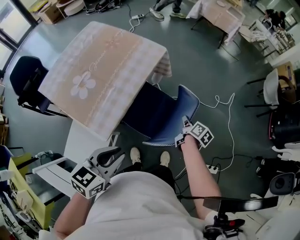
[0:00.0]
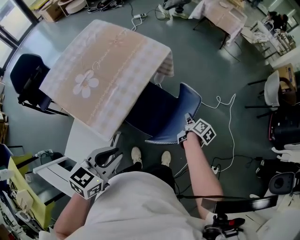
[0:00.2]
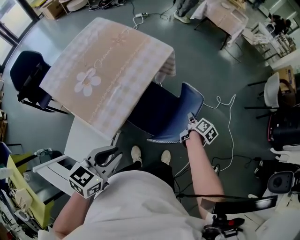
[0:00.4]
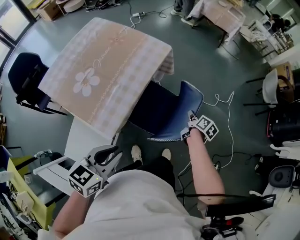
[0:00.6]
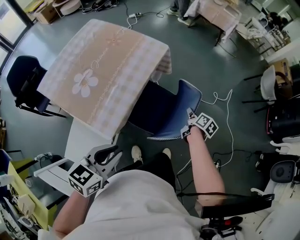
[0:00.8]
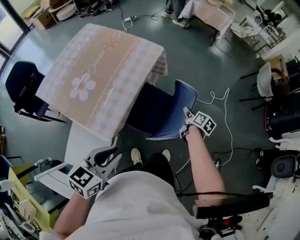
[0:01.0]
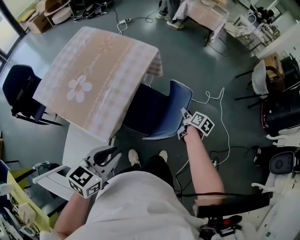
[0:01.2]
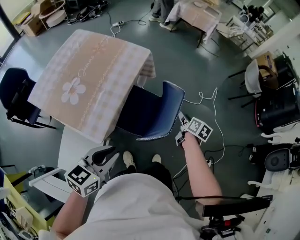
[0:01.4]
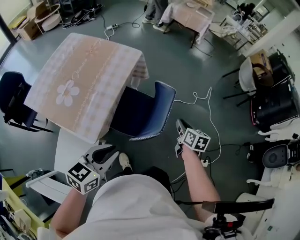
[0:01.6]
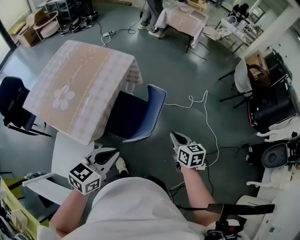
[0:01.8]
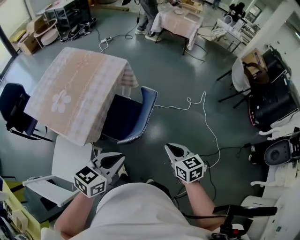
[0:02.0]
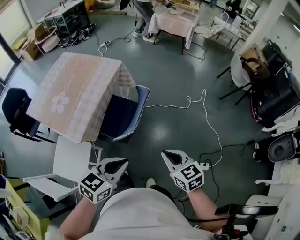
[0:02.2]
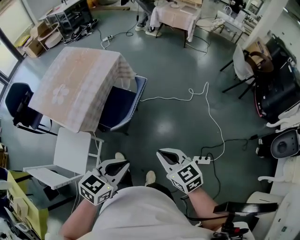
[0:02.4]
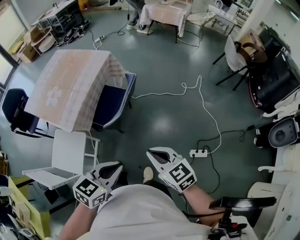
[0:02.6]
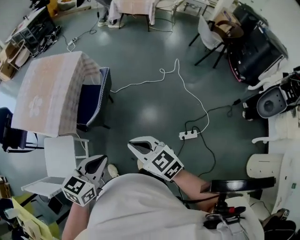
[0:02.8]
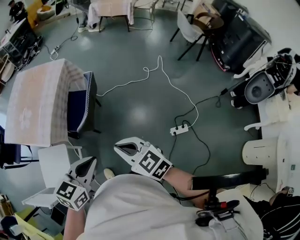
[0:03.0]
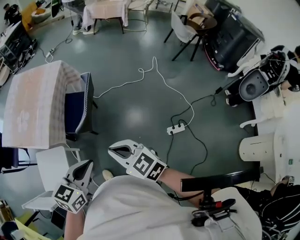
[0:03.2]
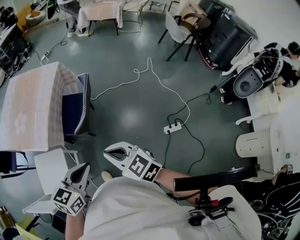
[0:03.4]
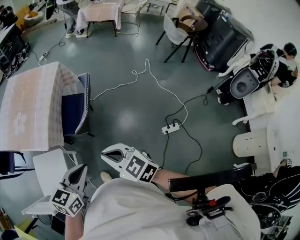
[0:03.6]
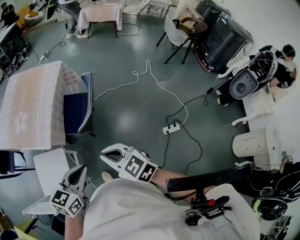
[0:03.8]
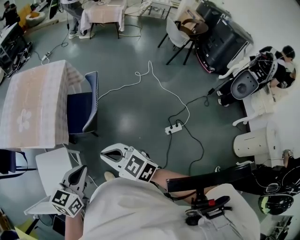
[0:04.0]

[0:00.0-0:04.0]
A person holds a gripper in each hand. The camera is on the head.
0:00.0 to 0:01.4: The right gripper travels upward by about 5 cm, and opens up.
0:01.4 to 0:02.6: The right gripper travels backward and upward by some 35 cm, rotates around the line of its fingers by about 50 degrees, counterclockwise from behind, and closes. The left gripper is displaced to the right and backward by approximately 30 cm.
0:02.6 to 0:04.0: Both grippers move to the left, approximately 15 cm.

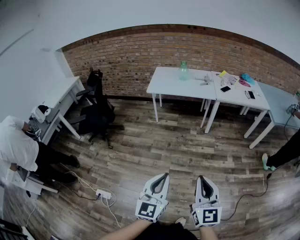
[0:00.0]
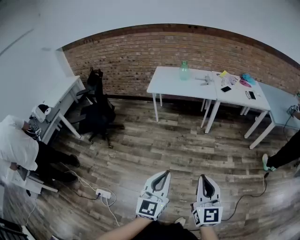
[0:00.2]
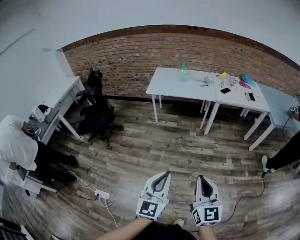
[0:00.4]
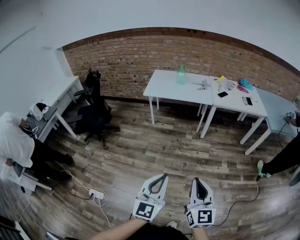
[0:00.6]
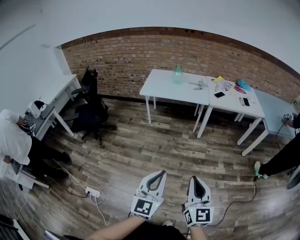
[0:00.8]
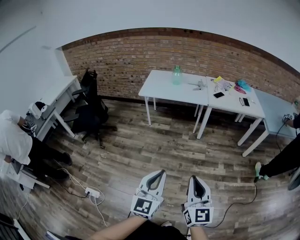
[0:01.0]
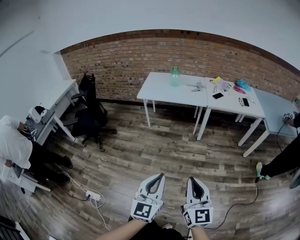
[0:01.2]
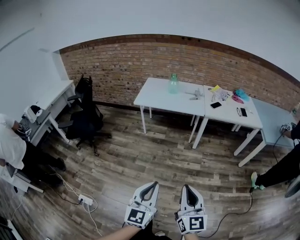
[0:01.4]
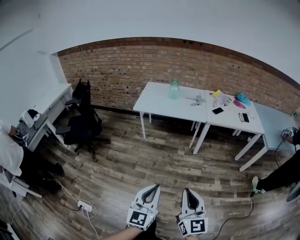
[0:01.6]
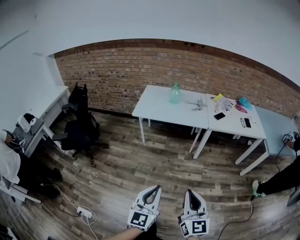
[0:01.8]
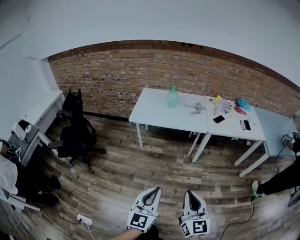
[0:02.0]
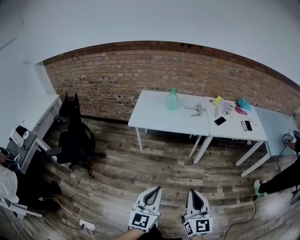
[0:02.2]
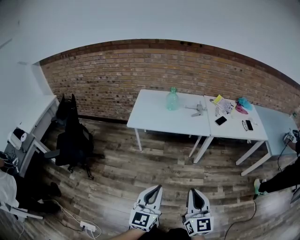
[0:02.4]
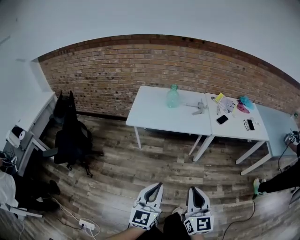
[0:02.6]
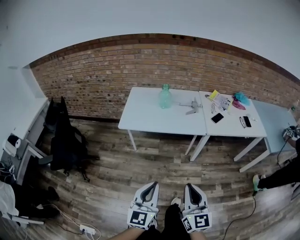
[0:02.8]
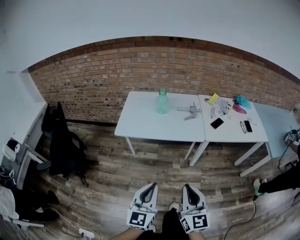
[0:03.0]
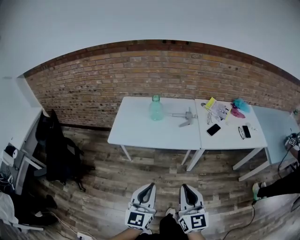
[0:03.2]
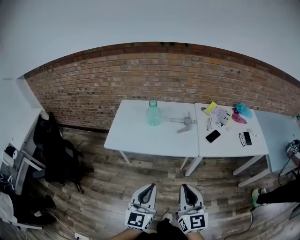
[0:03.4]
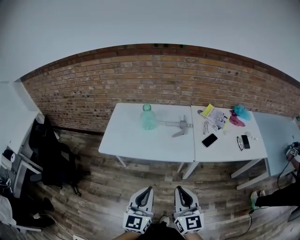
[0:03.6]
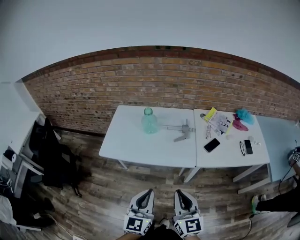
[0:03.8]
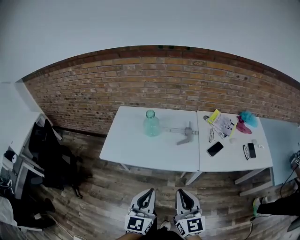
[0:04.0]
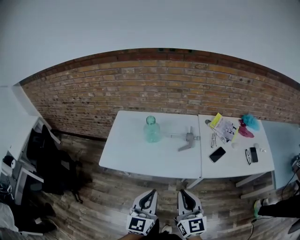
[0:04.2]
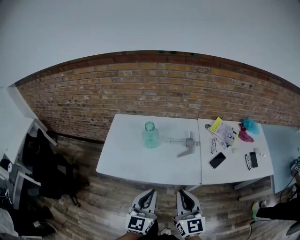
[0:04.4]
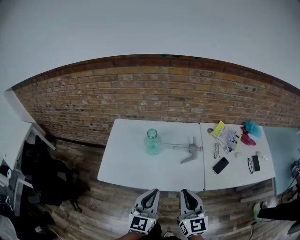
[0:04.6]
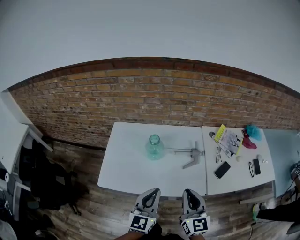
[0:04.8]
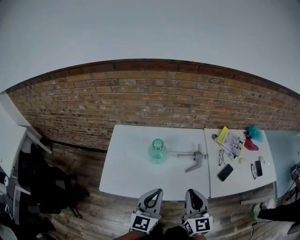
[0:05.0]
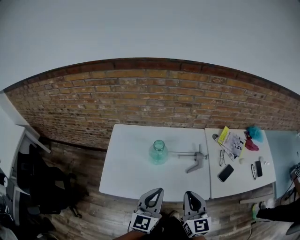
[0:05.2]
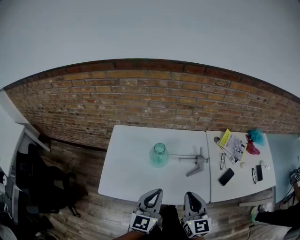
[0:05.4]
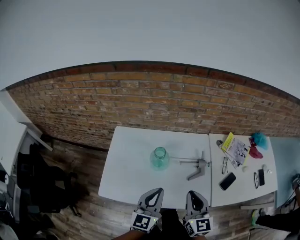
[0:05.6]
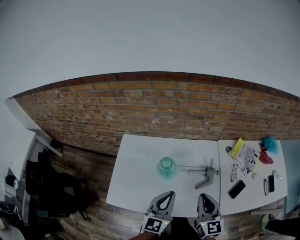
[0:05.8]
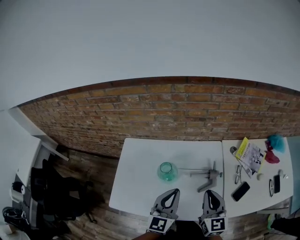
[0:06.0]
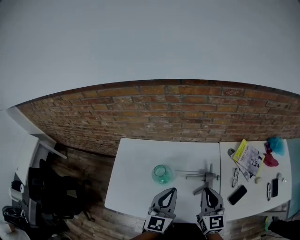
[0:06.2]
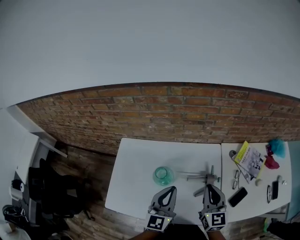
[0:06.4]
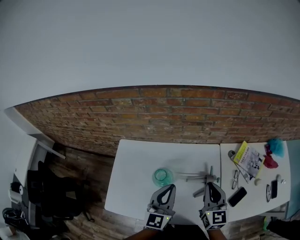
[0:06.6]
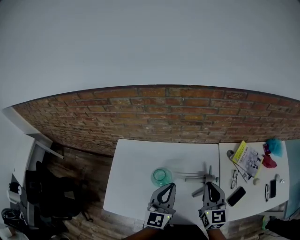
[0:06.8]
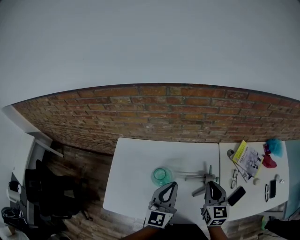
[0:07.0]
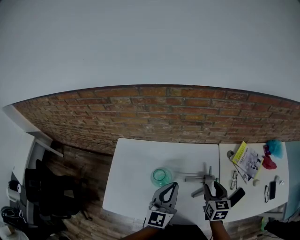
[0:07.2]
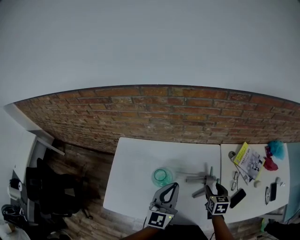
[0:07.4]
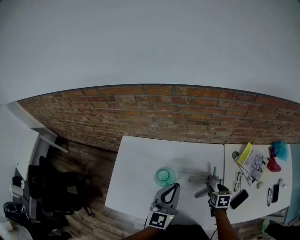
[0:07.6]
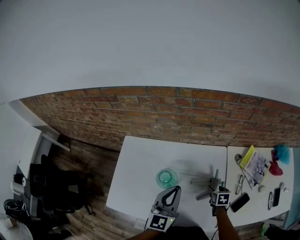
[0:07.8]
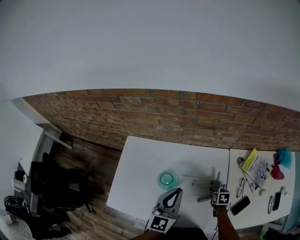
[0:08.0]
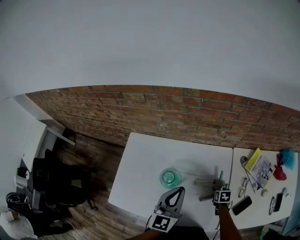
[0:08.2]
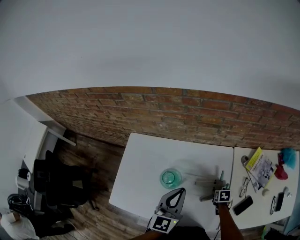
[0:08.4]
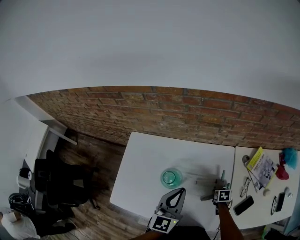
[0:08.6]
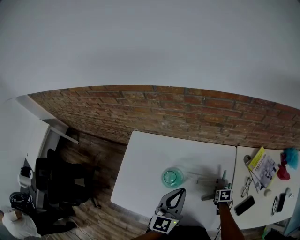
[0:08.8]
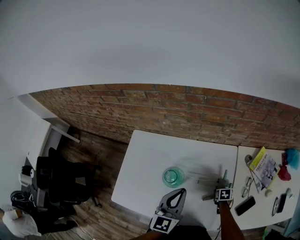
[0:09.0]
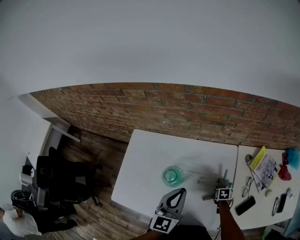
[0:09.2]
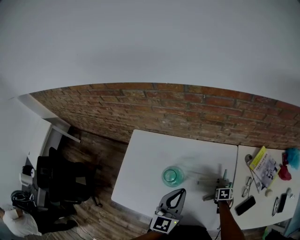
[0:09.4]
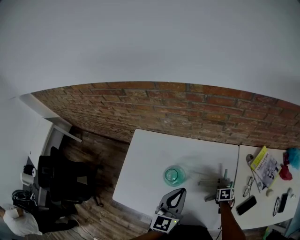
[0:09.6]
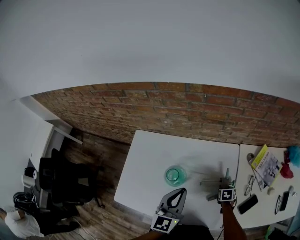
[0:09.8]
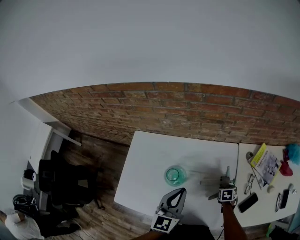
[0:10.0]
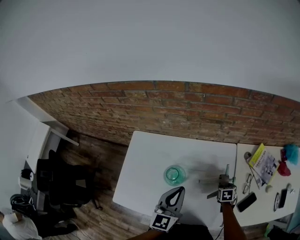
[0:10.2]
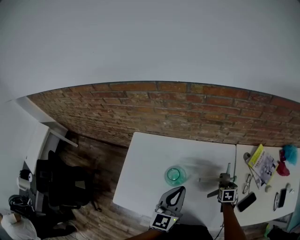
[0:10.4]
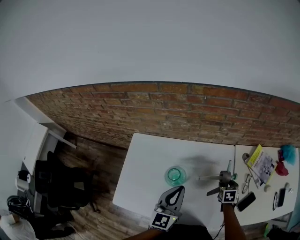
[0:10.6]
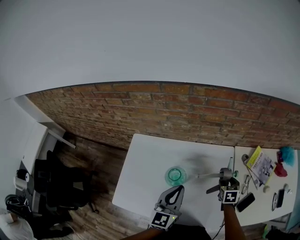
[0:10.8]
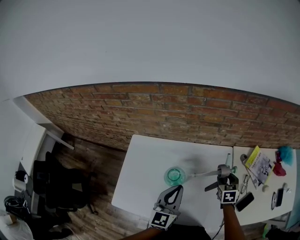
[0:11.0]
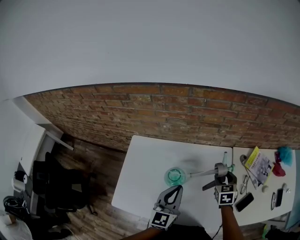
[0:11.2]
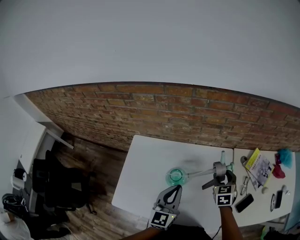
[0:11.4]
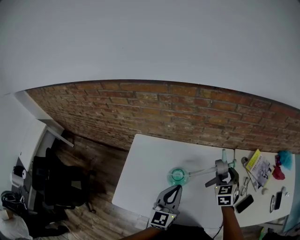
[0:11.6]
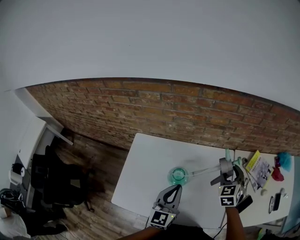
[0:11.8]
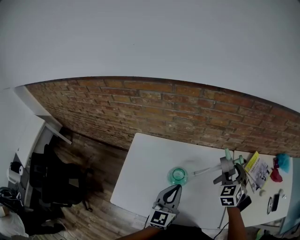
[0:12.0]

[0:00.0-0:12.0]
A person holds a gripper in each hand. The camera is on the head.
0:00.0 to 0:01.6: The two grippers go about 15 cm forward and to the right.
0:01.6 to 0:03.0: The two grippers go roughly 35 cm forward.
0:03.0 to 0:04.4: Both grippers travel together forward, approximately 35 cm.
0:04.4 to 0:06.0: The two grippers go roughly 30 cm forward.
0:06.0 to 0:07.6: The right gripper heads downward and forward, covering some 25 cm, tips its fingers downward by some 40 degrees, and opens its fingers. The left gripper is displaced forward by some 10 cm.
0:07.6 to 0:09.0: The right gripper travels downward by some 15 cm, and swivels roughly 20 degrees.
0:09.0 to 0:10.4: The right gripper goes approximately 10 cm upward.
0:10.4 to 0:12.0: The right gripper moves upward, approximately 25 cm, and points its fingers roughly 30 degrees further upward.

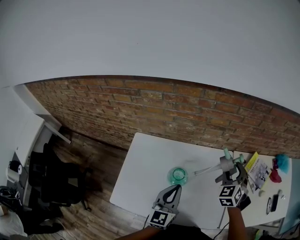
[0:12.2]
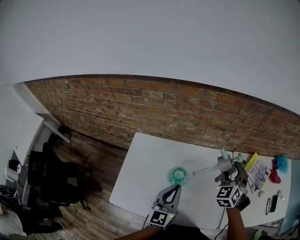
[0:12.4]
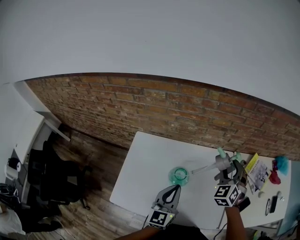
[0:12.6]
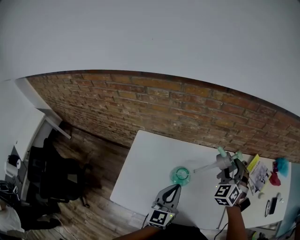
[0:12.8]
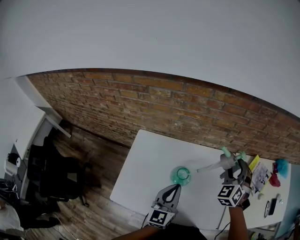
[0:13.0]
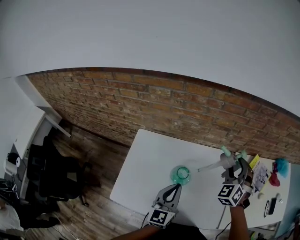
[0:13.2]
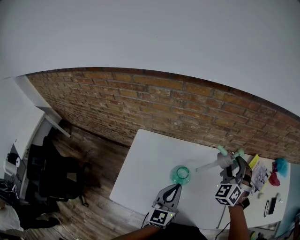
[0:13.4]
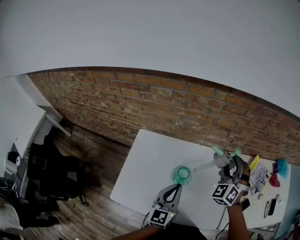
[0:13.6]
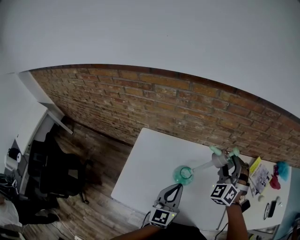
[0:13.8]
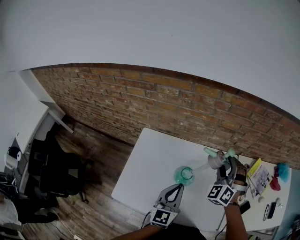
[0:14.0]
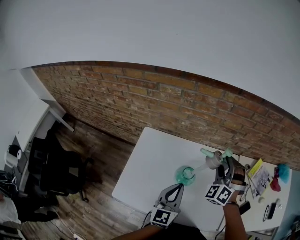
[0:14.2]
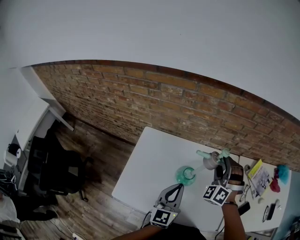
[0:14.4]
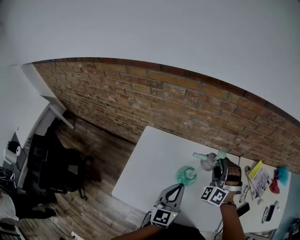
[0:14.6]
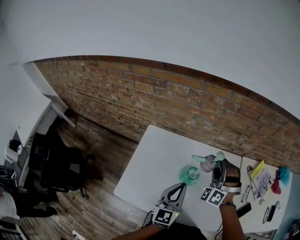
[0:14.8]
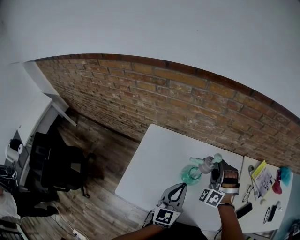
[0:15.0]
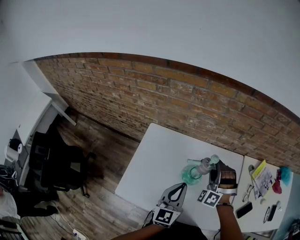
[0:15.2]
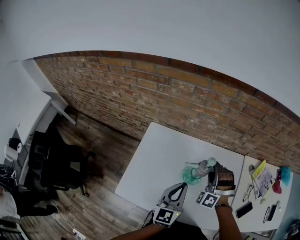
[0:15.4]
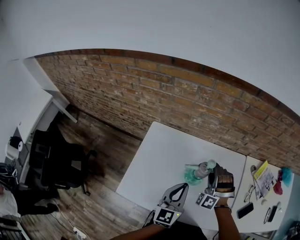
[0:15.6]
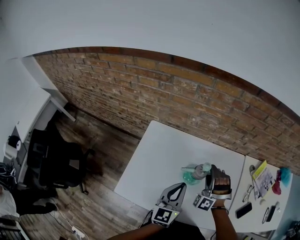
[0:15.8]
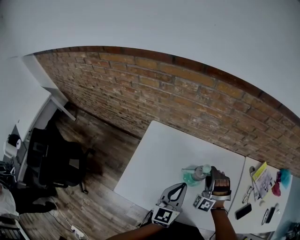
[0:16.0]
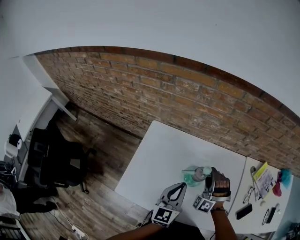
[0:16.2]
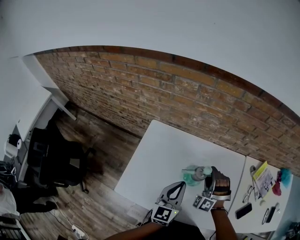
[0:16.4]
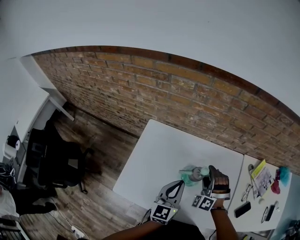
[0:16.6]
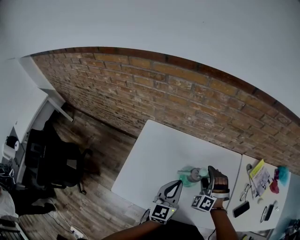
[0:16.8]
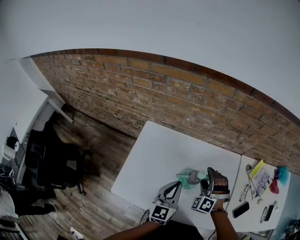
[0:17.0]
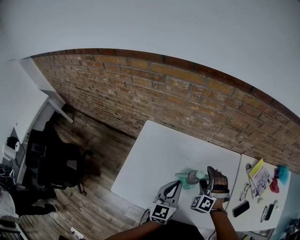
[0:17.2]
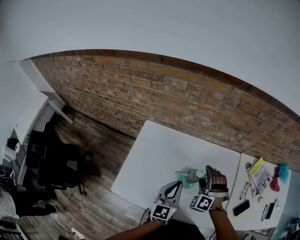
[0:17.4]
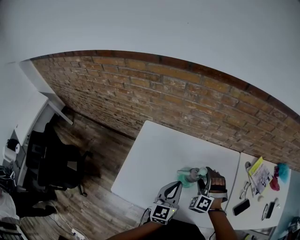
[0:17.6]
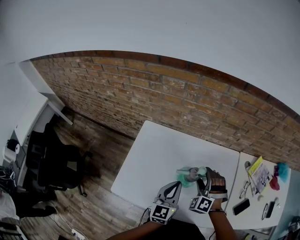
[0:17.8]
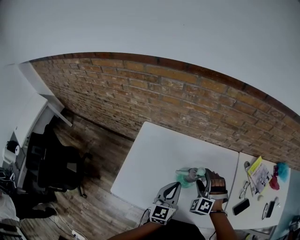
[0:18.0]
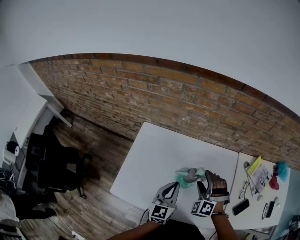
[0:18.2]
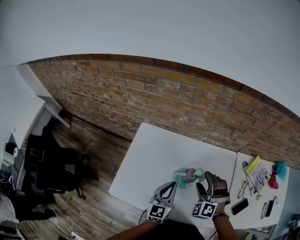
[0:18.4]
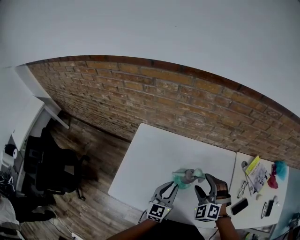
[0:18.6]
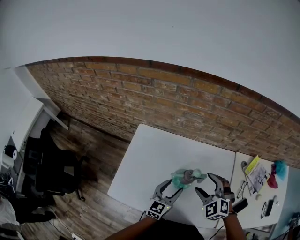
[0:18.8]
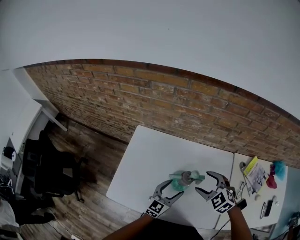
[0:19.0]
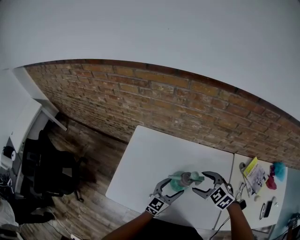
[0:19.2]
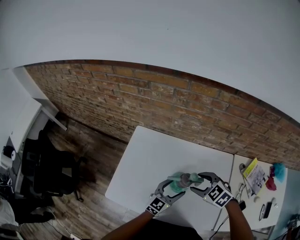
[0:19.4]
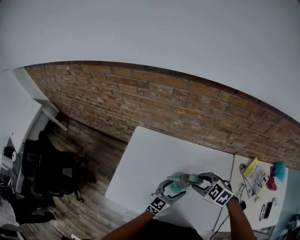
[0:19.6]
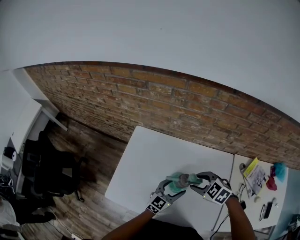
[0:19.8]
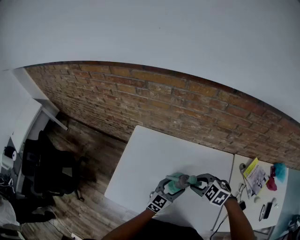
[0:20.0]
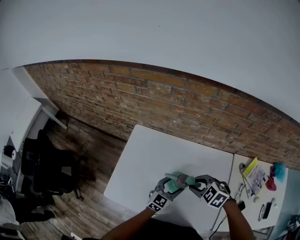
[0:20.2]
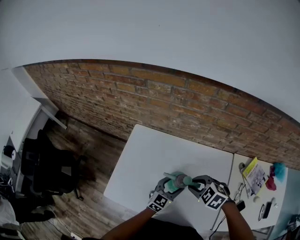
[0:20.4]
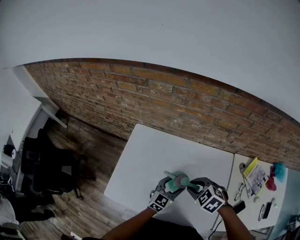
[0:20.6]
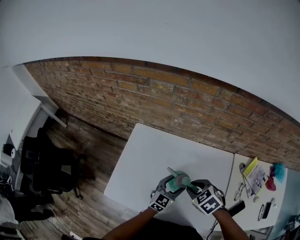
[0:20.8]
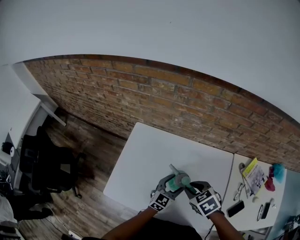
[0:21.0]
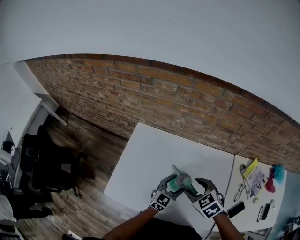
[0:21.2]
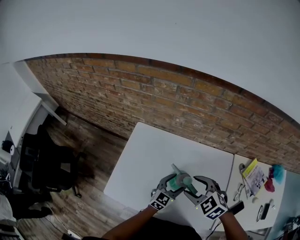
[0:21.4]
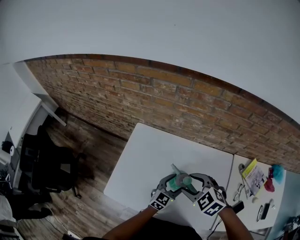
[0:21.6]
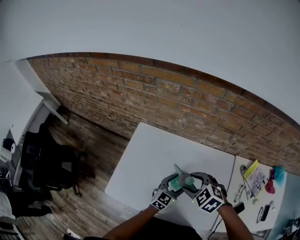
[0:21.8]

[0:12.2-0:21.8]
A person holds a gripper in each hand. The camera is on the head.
0:12.2 to 0:13.8: The right gripper moves to the left, about 10 cm, and changes its angle by roughly 20 degrees.
0:13.8 to 0:15.4: The right gripper heads downward and to the left, covering about 15 cm, and rotates about 30 degrees.
0:15.4 to 0:17.0: The grippers stay close to where they were, moving slightly.
0:17.0 to 0:18.6: The right gripper travels backward by approximately 5 cm; the left gripper moves about 5 cm.
0:18.6 to 0:20.2: The right gripper swivels about 40 degrees, and closes up, while the left gripper travels downward and to the right by approximately 10 cm, and opens.
0:20.2 to 0:21.8: The right gripper changes place by approximately 5 cm.
